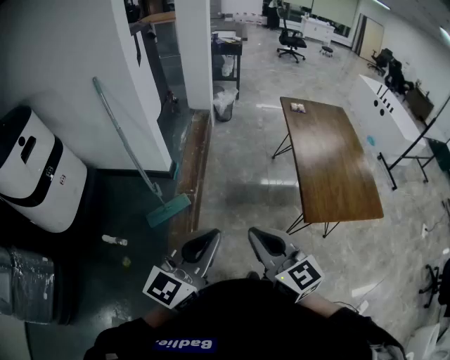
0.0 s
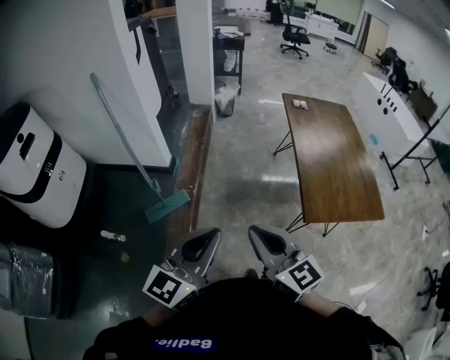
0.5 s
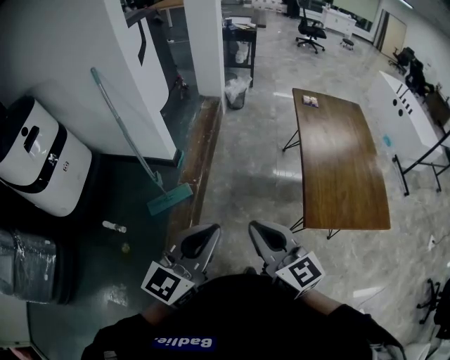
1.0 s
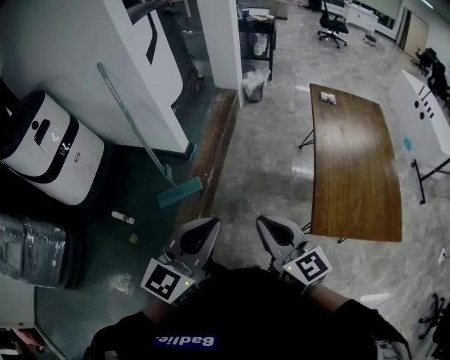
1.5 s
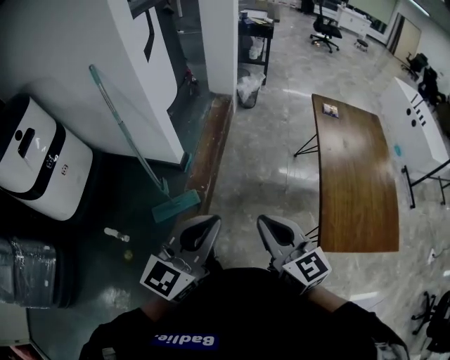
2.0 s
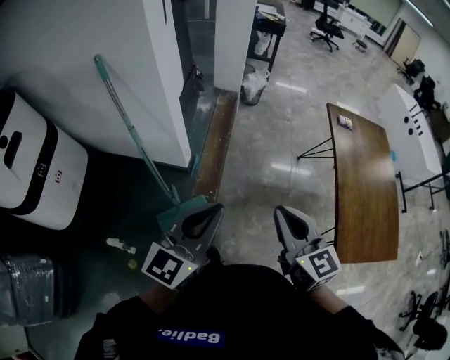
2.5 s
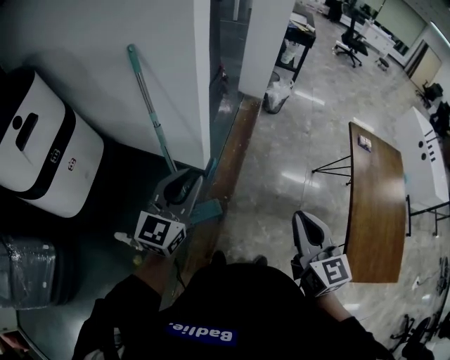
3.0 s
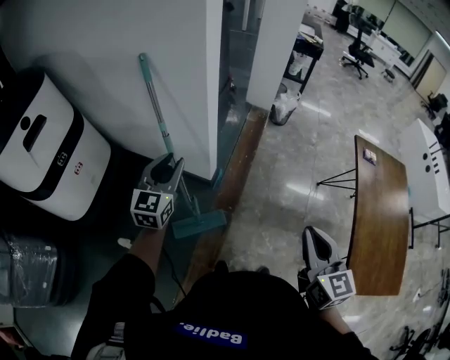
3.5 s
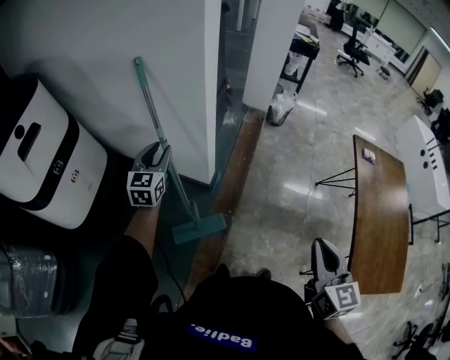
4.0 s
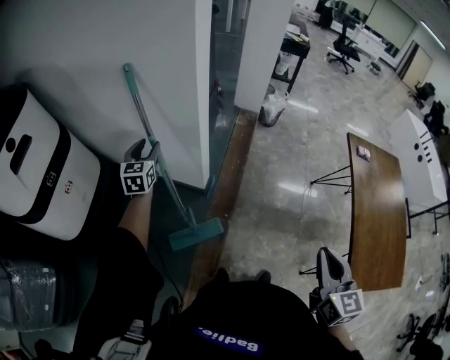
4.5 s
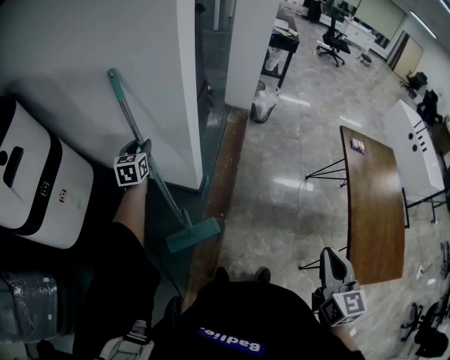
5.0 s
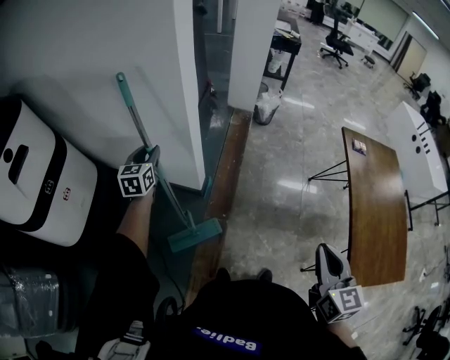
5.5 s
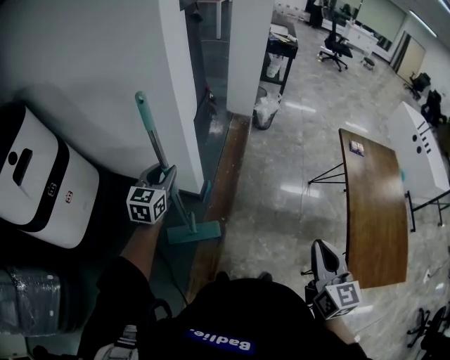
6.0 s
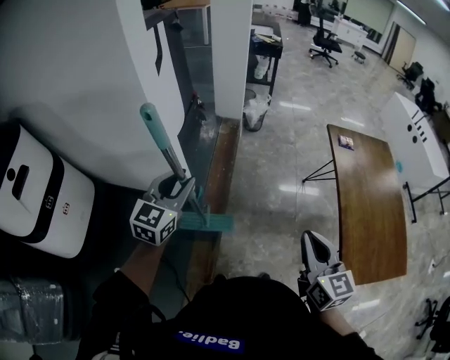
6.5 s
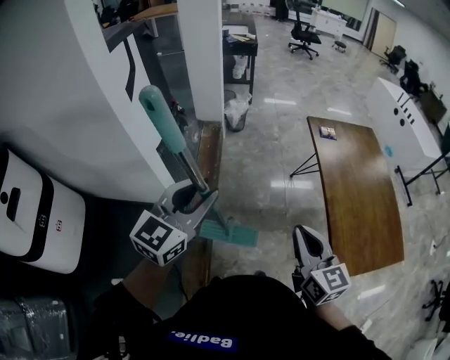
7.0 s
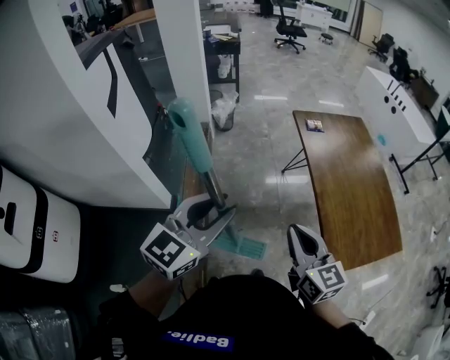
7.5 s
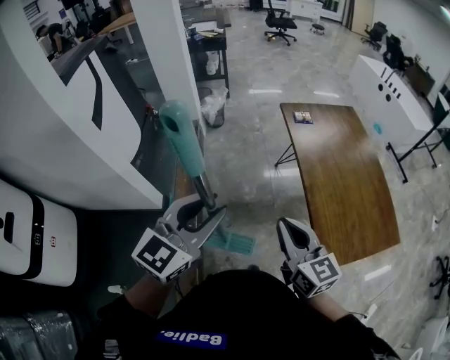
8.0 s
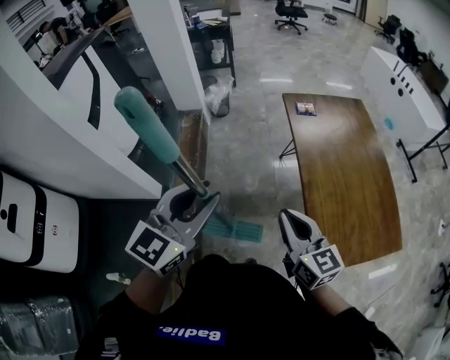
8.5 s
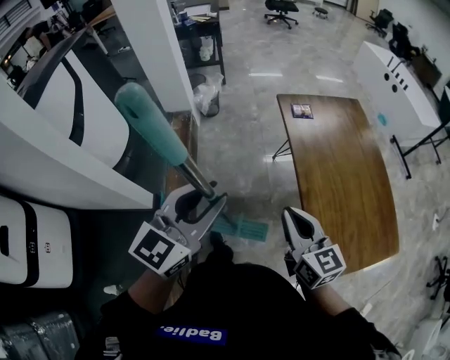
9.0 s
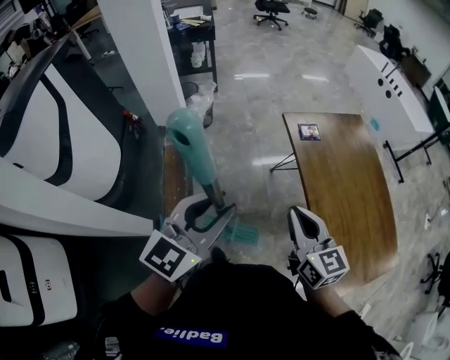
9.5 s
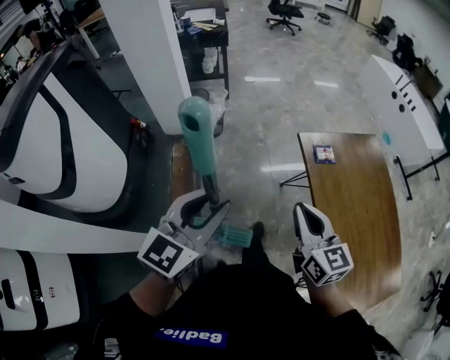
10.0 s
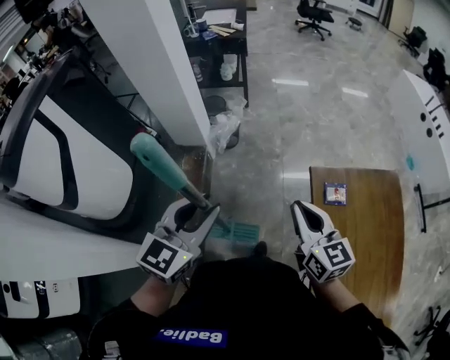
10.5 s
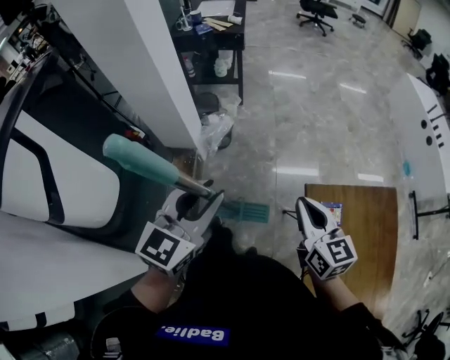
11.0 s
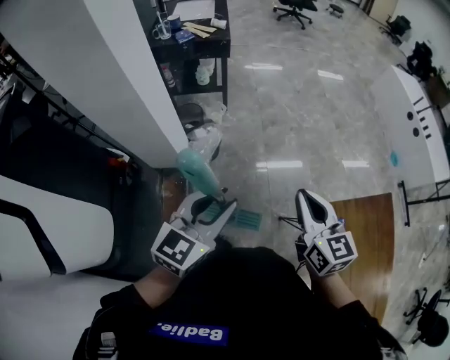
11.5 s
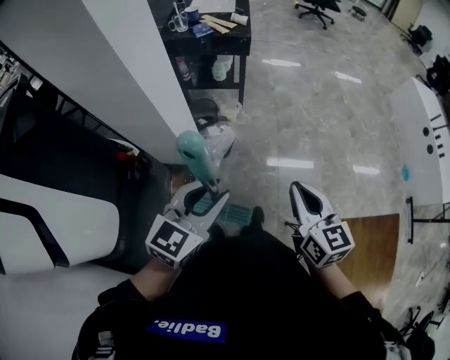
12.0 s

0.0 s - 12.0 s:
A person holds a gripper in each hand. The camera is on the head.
0.0 s - 2.0 s: The grippers both shift forward by roughly 15 cm.
2.0 s - 4.0 s: The left gripper shifts some 60 cm to the left and forward, rotates some 40 degrees, and opens its fingers. Meanwhile the right gripper heads forward and to the left, covering roughly 15 cm, and swivels about 20 degrees.
4.0 s - 6.0 s: The right gripper shifts some 5 cm to the right. Meanwhile the left gripper is displaced to the right by some 10 cm.
6.0 s - 8.0 s: The right gripper is displaced to the right by some 15 cm, while the left gripper travels to the right by approximately 40 cm, and swivels some 40 degrees.
8.0 s - 10.0 s: The grippers both shift forward by approximately 35 cm.
10.0 s - 12.0 s: The two grippers travel together, forward, roughly 50 cm.

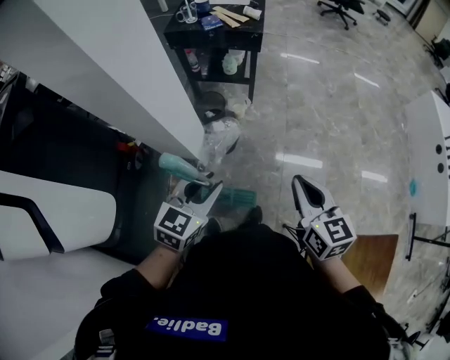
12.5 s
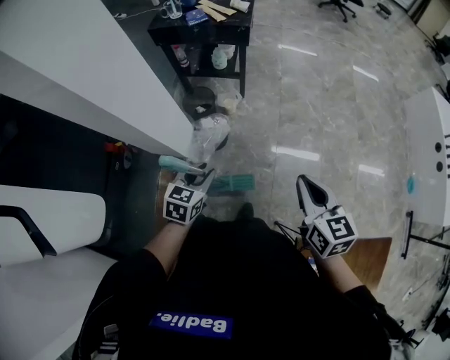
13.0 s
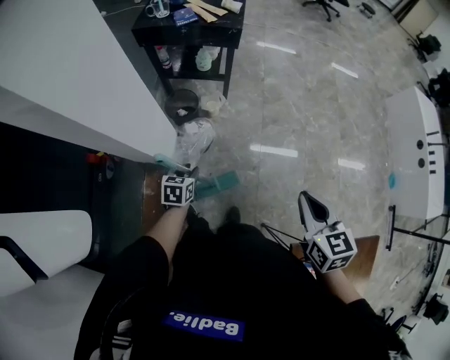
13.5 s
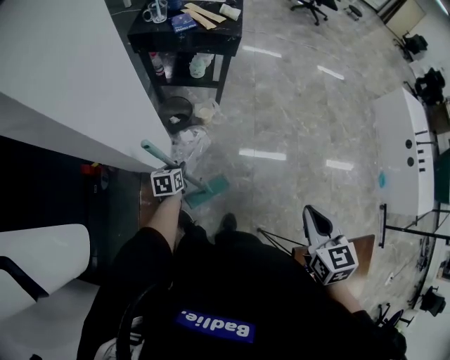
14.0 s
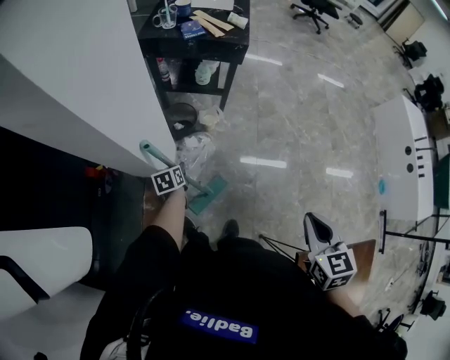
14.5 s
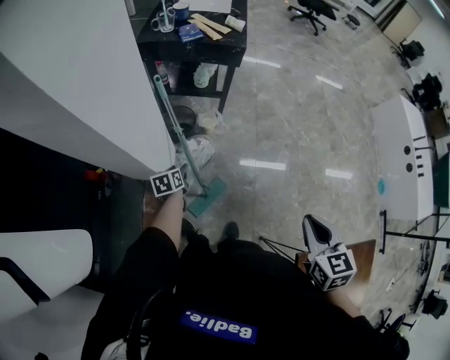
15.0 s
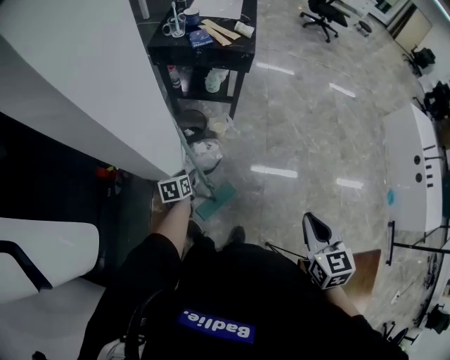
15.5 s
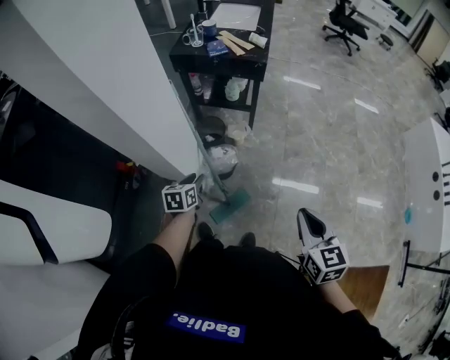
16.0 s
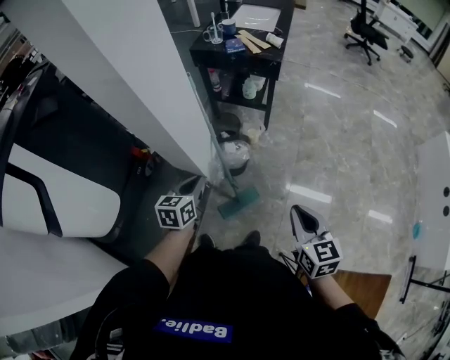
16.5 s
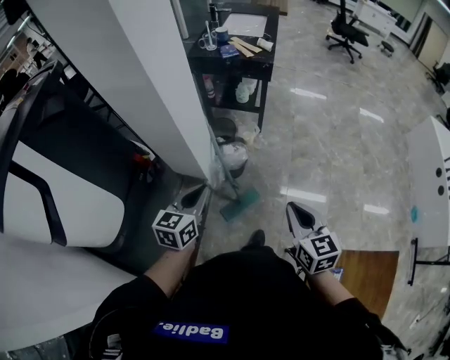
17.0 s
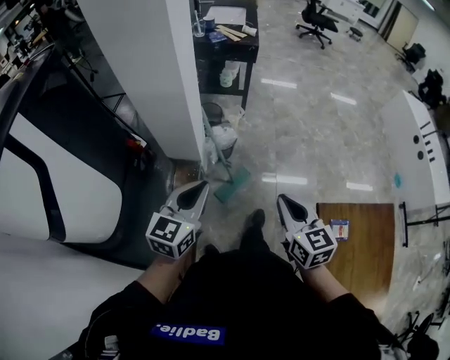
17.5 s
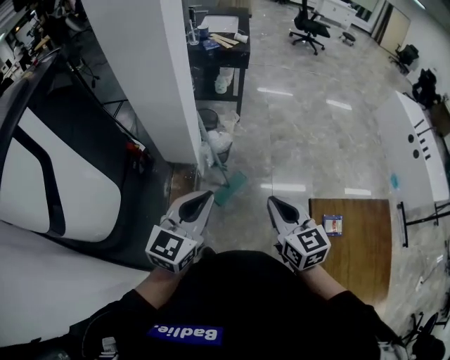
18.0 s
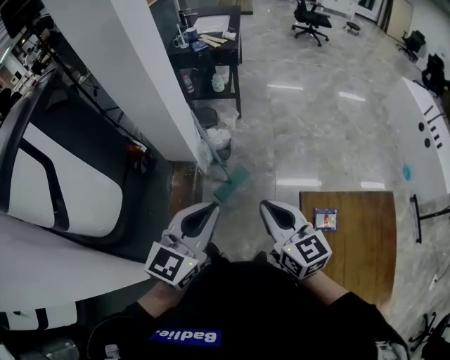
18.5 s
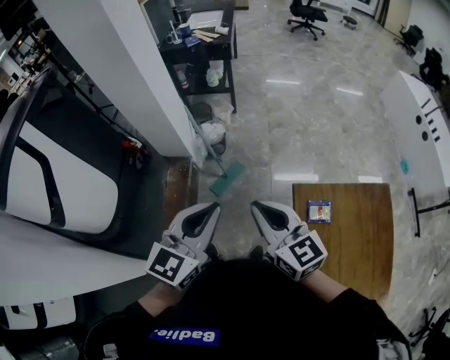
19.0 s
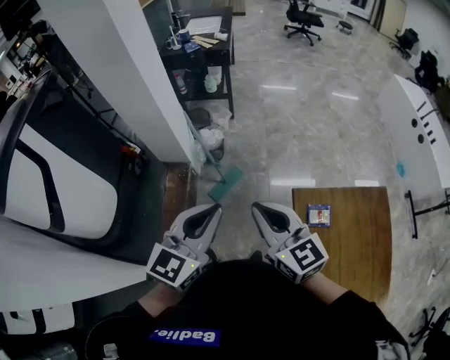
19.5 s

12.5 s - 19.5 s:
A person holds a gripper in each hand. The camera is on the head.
12.5 s - 14.5 s: The right gripper changes its angle by about 20 degrees; the left gripper goes approximately 40 cm downward, forward and to the left, and twists some 40 degrees counterclockwise, seen from behind.
14.5 s - 16.0 s: The left gripper goes roughly 15 cm upward and backward.
16.0 s - 17.5 s: The left gripper shifts approximately 35 cm backward and upward, turns by approximately 40 degrees, and closes. Meanwhile the right gripper goes approximately 25 cm backward and to the left.
17.5 s - 19.5 s: The right gripper goes about 15 cm backward, upward and to the right. Meanwhile the left gripper moves to the right, backward and upward, about 25 cm.

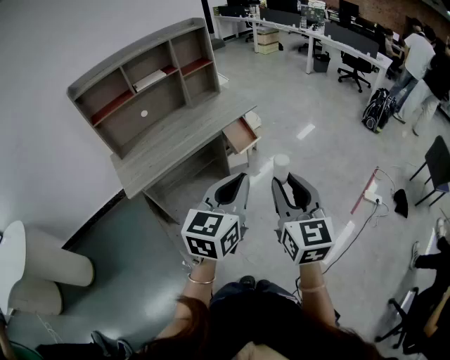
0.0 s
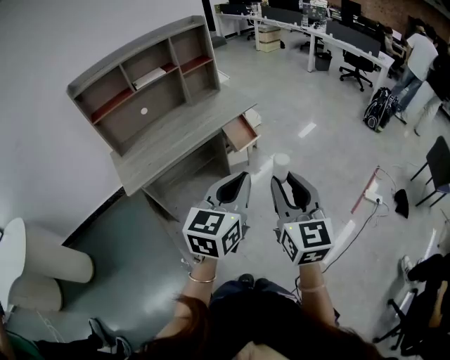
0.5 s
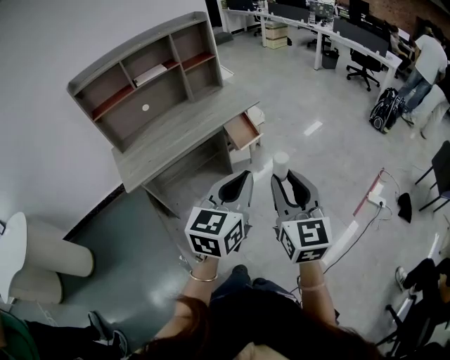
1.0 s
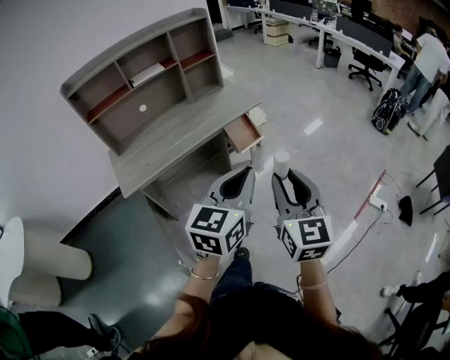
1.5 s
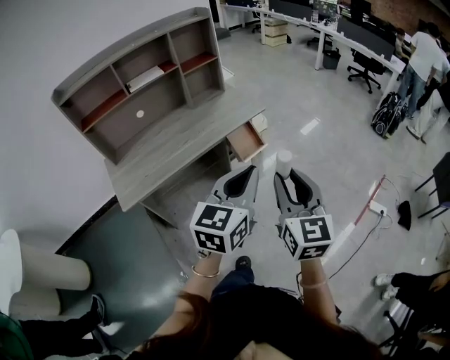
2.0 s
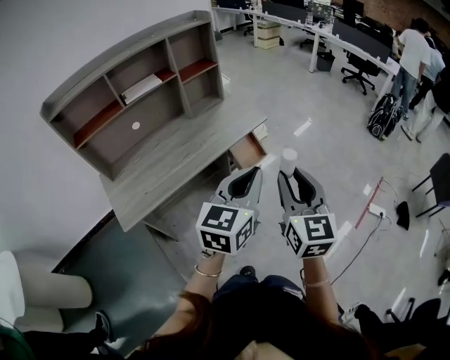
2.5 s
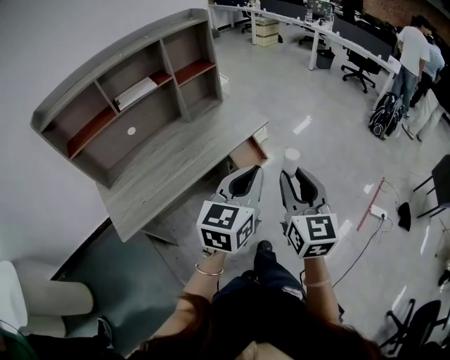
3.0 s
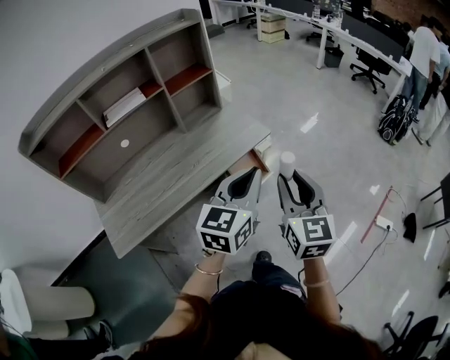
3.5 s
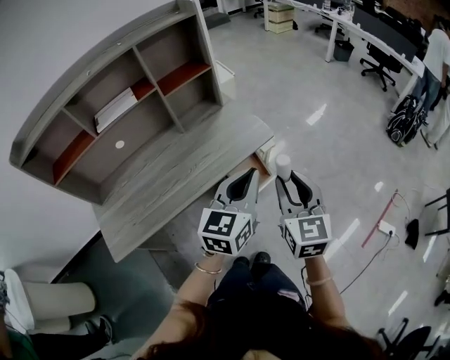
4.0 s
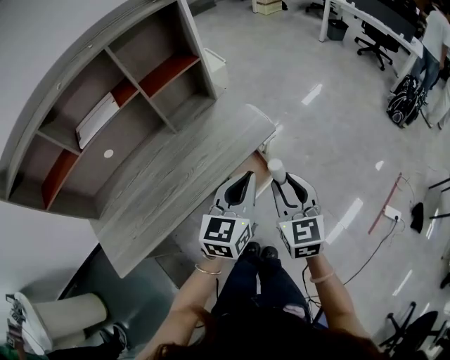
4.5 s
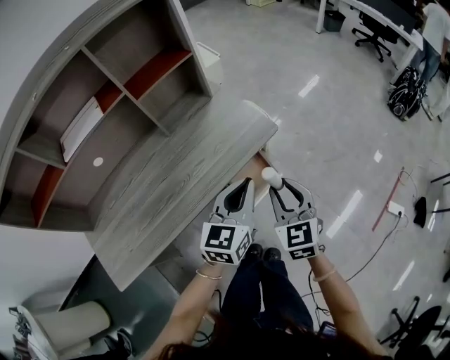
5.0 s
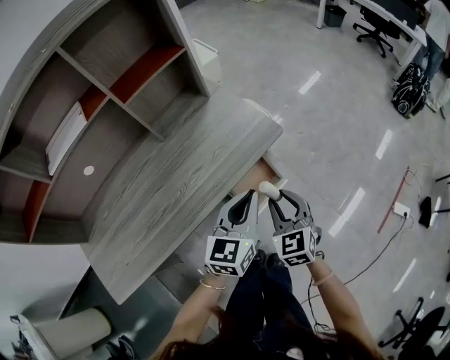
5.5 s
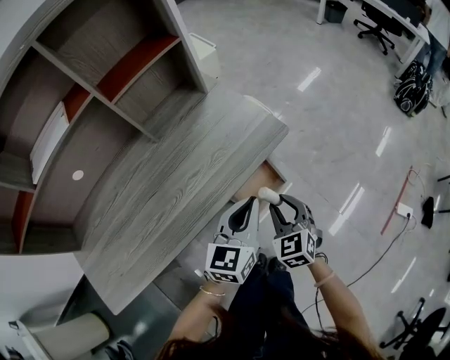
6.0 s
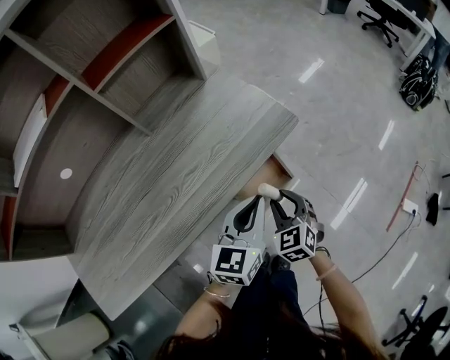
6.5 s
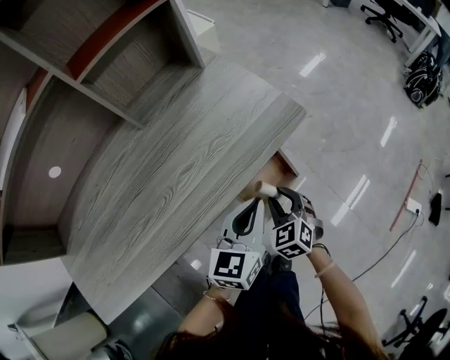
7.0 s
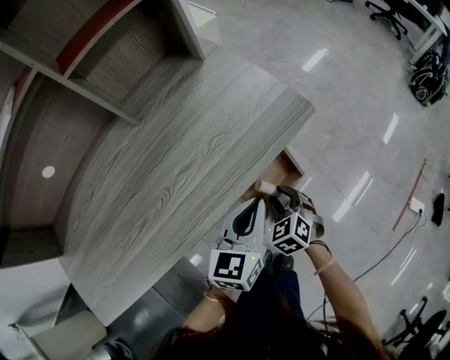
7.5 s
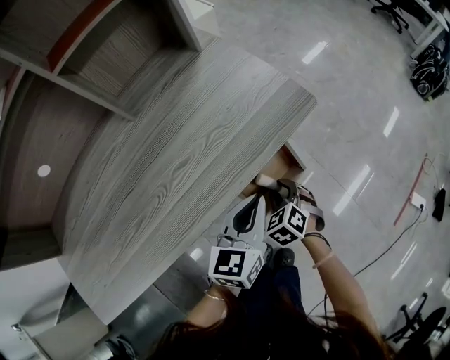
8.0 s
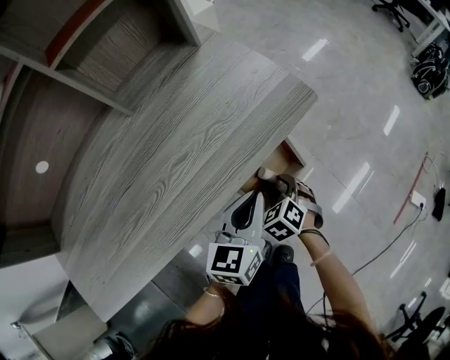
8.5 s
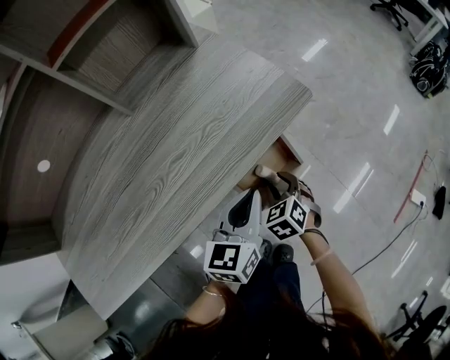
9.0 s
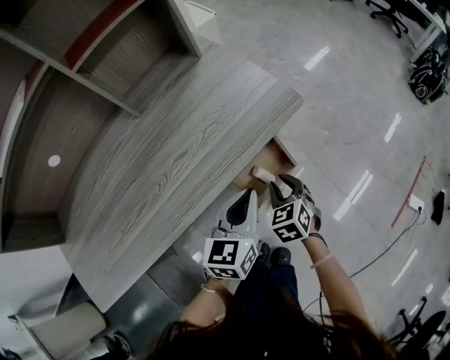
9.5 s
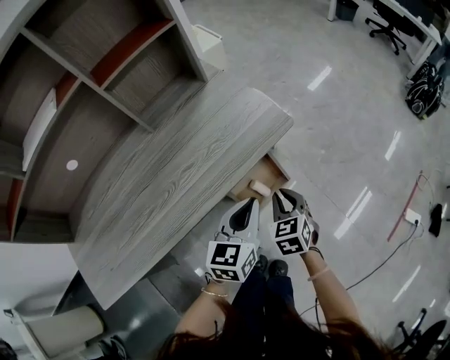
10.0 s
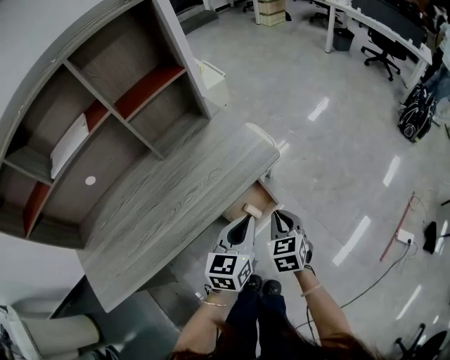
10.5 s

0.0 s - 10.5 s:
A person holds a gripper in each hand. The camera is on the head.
0.0 s - 2.0 s: The two grippers go about 15 cm forward.
2.0 s - 4.0 s: Both grippers travel together forward, approximately 30 cm.
4.0 s - 6.5 s: The left gripper moves downward and forward, some 35 cm. The right gripper moves downward, approximately 40 cm, and swivels roughly 30 degrees.
6.5 s - 8.5 s: The left gripper heads downward, covering some 10 cm, while the right gripper moves downward, some 15 cm, and swivels roughly 20 degrees.
8.5 s - 10.5 s: The left gripper heads upward, covering some 15 cm, while the right gripper goes approximately 25 cm upward, swivels about 30 degrees, and closes.
